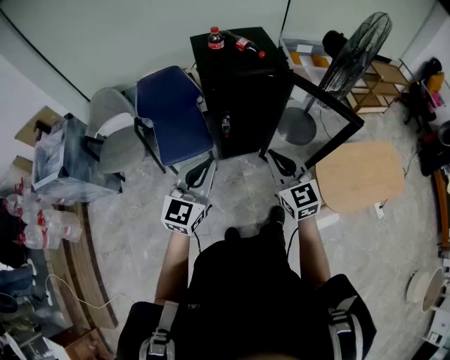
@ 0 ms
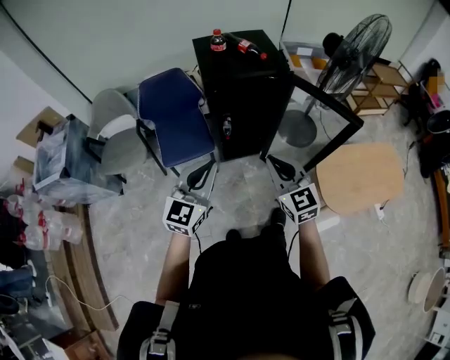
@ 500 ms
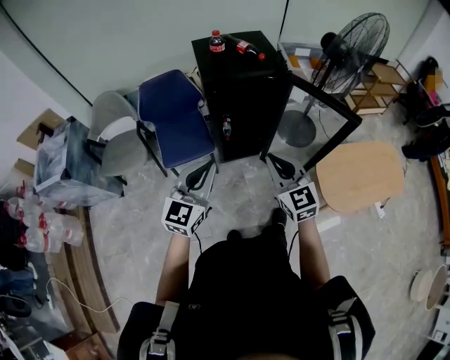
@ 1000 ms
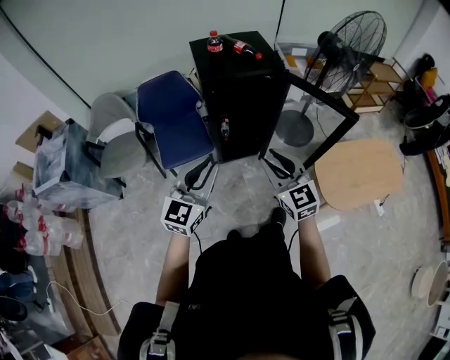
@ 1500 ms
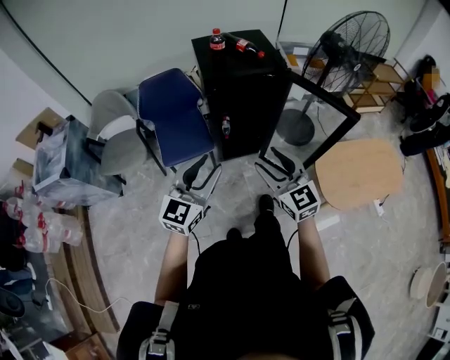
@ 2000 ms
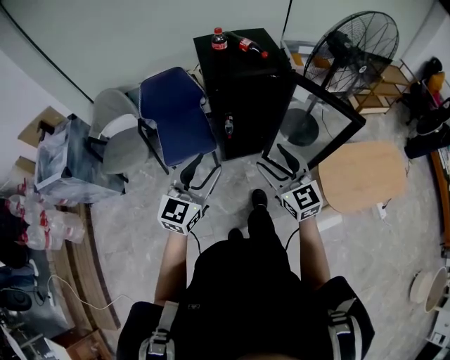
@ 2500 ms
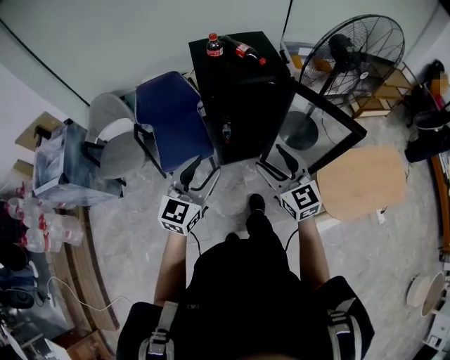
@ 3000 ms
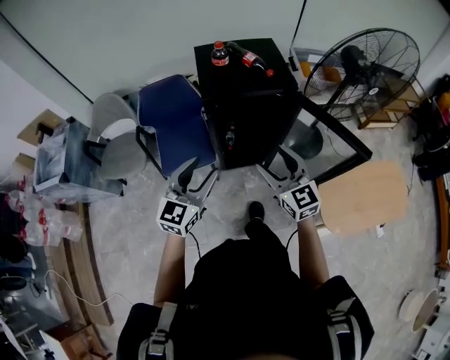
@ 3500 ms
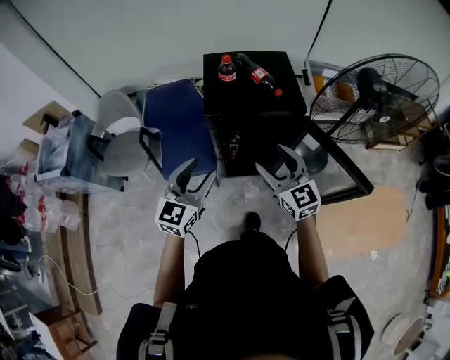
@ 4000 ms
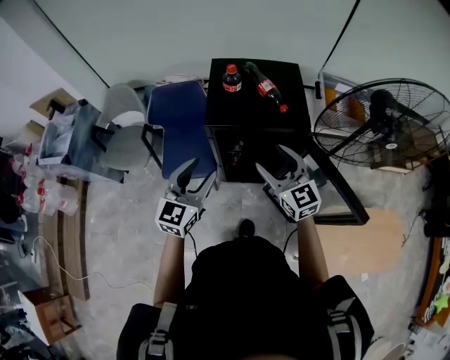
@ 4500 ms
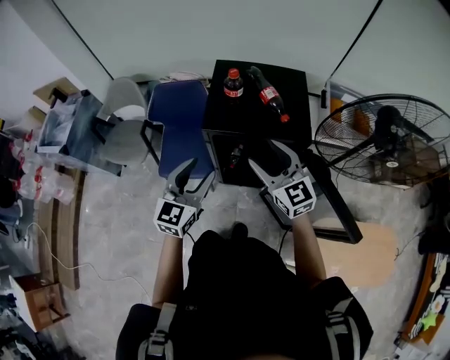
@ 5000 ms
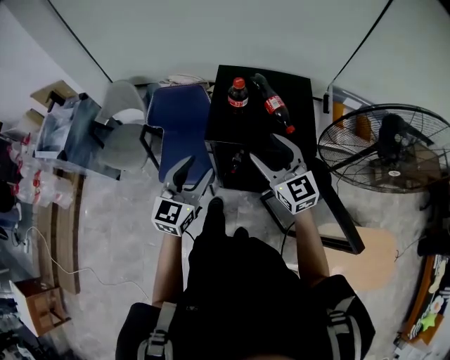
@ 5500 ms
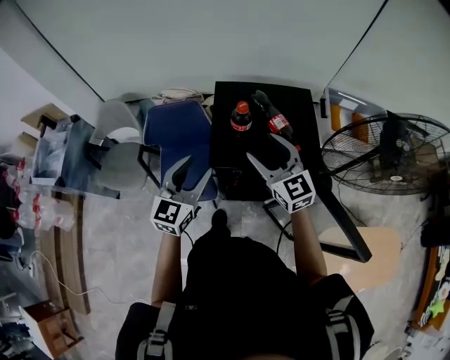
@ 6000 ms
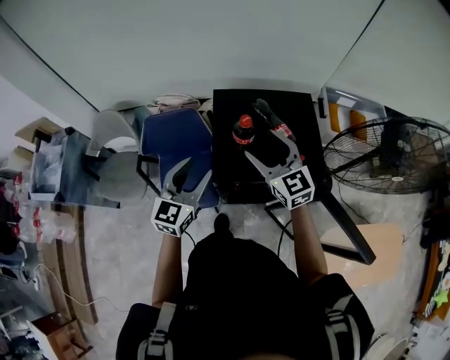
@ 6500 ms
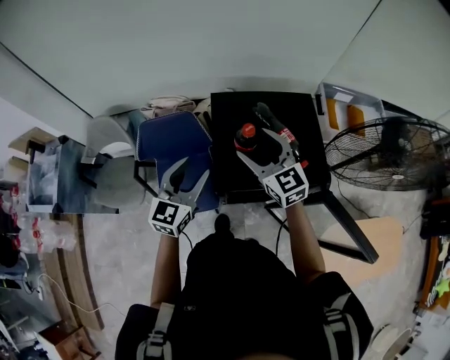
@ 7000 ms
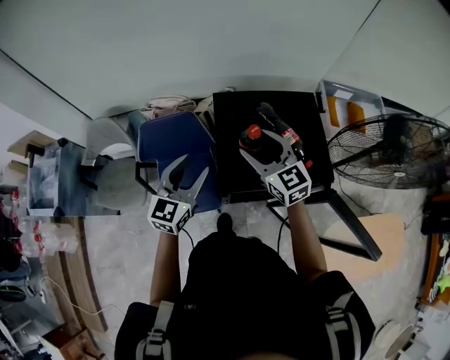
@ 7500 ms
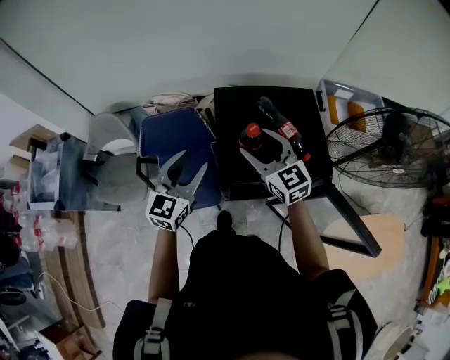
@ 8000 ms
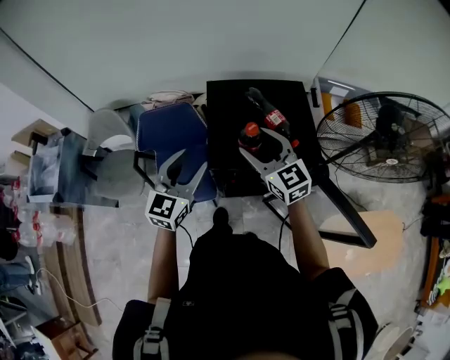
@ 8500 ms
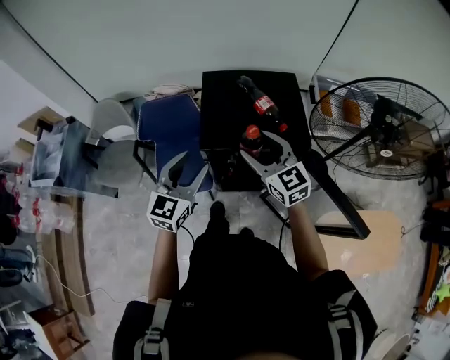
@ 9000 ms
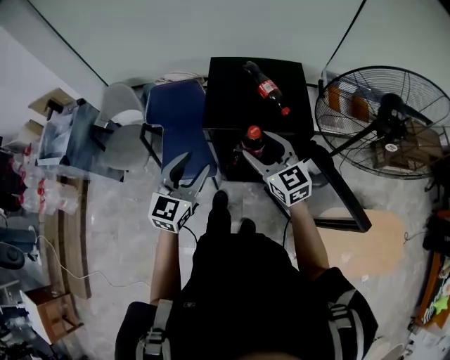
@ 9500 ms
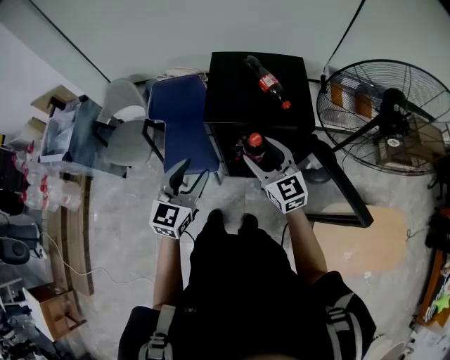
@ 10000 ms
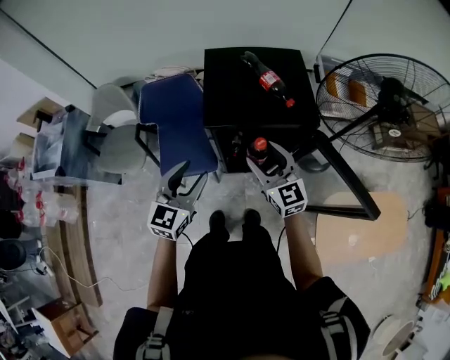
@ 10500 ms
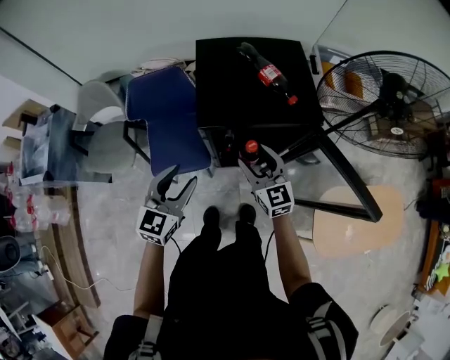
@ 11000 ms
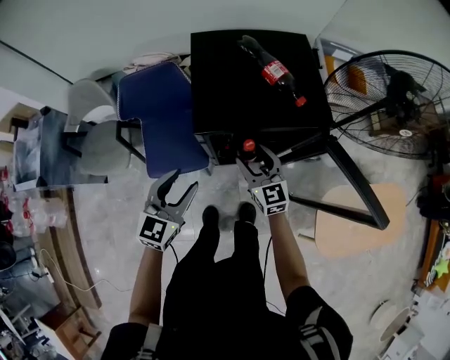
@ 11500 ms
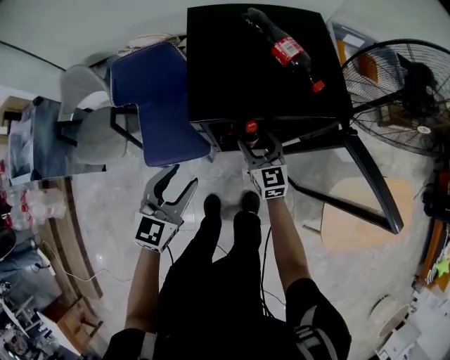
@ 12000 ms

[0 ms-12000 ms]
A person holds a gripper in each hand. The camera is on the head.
0 ms to 2000 ms: The right gripper changes place by about 5 cm, and opens up. The left gripper opens its fingers.
2000 ms to 4000 ms: The grippers both shift forward by about 20 cm.
4000 ms to 6000 ms: Both grippers move forward, some 20 cm.
6000 ms to 8000 ms: Both grippers travel together forward, approximately 5 cm.
8000 ms to 10000 ms: Both grippers move backward, roughly 20 cm.
10000 ms to 12000 ms: The right gripper goes approximately 25 cm downward and forward, and rotates about 20 degrees. The left gripper moves downward and forward, some 15 cm.

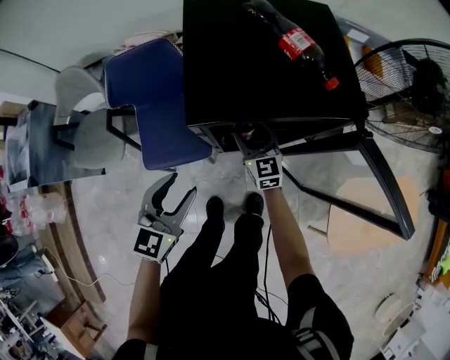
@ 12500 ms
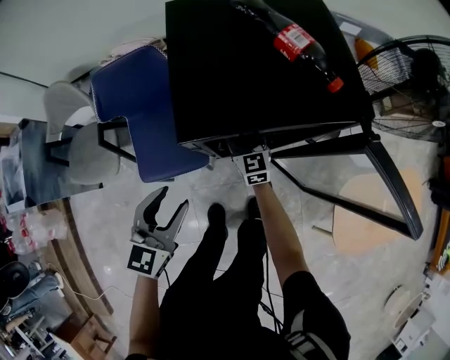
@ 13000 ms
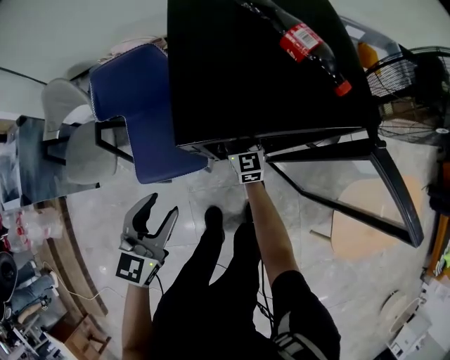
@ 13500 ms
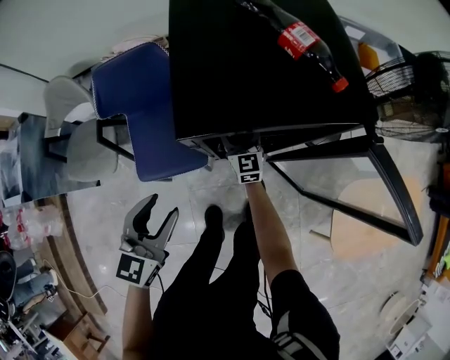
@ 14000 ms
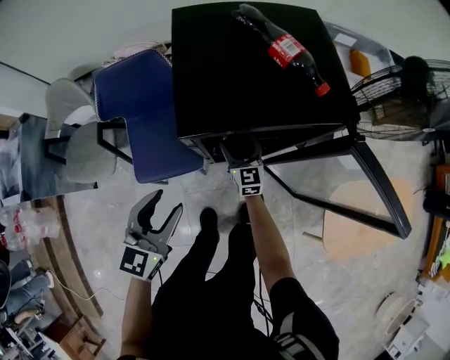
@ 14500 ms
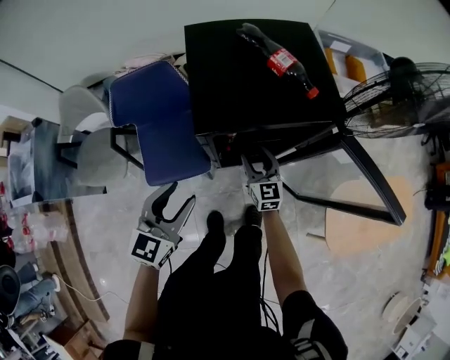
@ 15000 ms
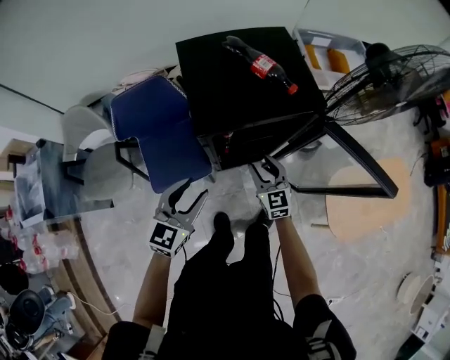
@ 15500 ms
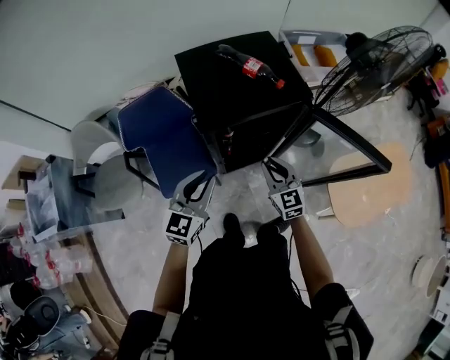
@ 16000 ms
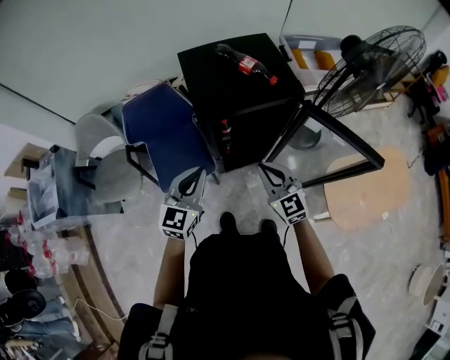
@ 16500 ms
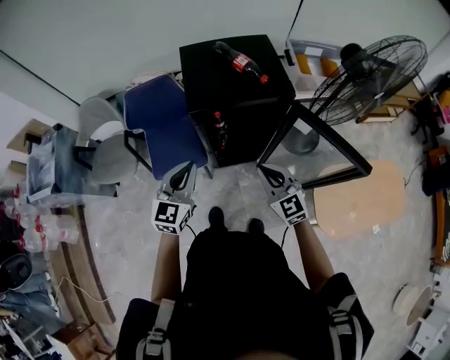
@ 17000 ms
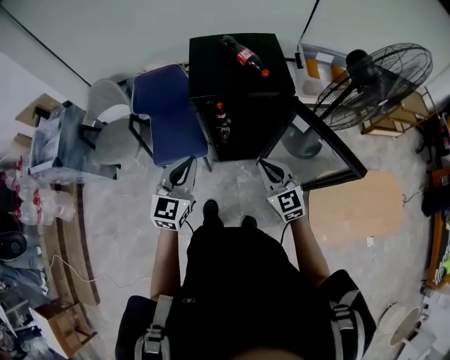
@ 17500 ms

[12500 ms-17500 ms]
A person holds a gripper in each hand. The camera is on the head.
15000 ms to 17500 ms: The left gripper moves upward, backward and to the right, about 15 cm, and closes up. Meanwhile the right gripper shifts approximately 30 cm upward, backward and to the right, rotates approximately 20 degrees, and closes its fingers.

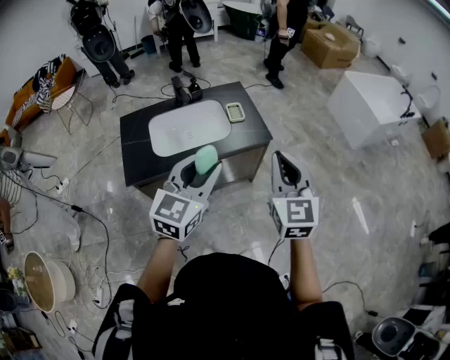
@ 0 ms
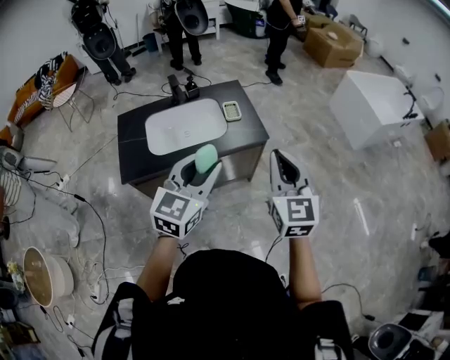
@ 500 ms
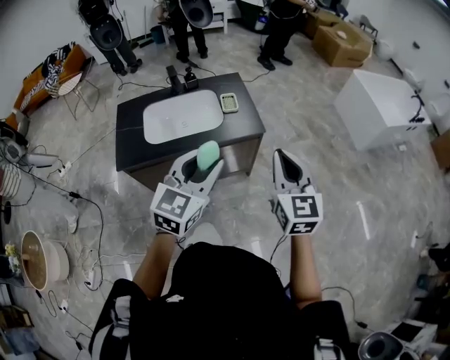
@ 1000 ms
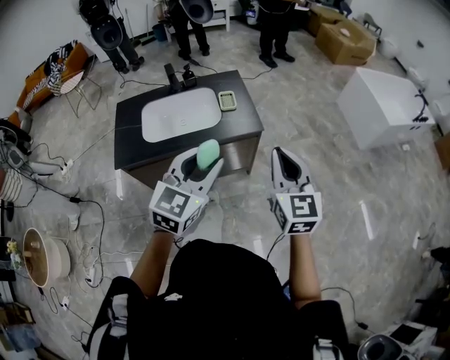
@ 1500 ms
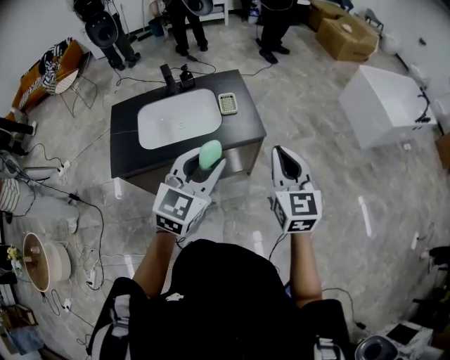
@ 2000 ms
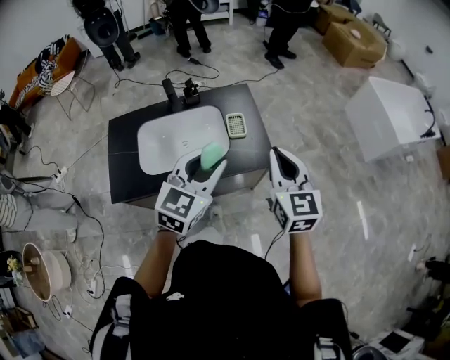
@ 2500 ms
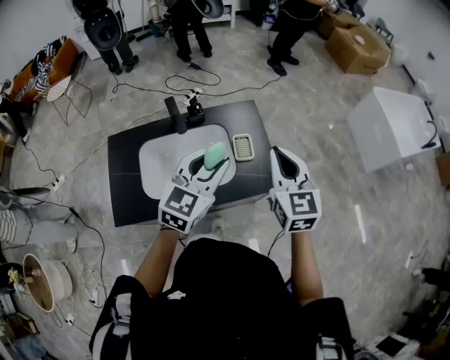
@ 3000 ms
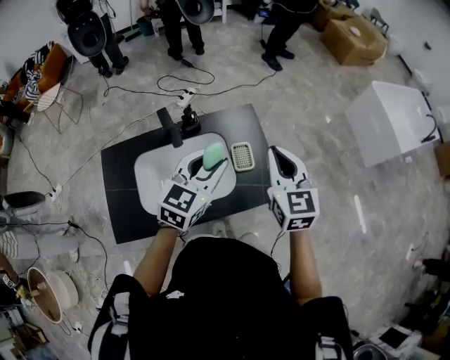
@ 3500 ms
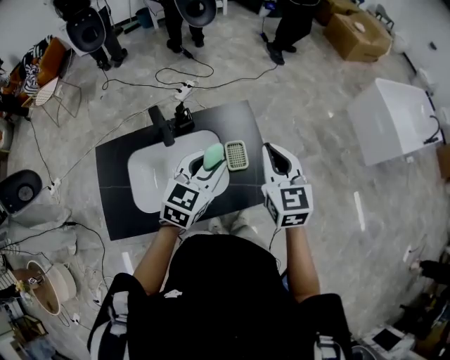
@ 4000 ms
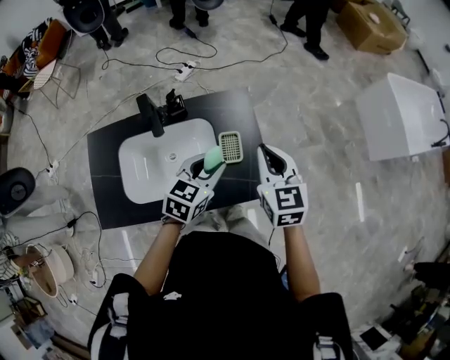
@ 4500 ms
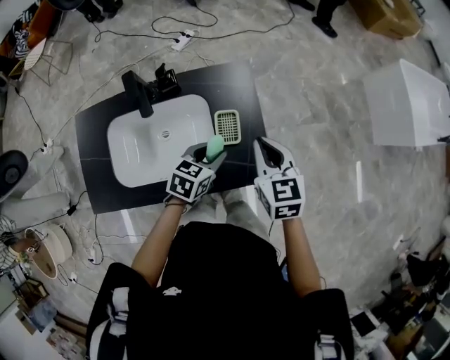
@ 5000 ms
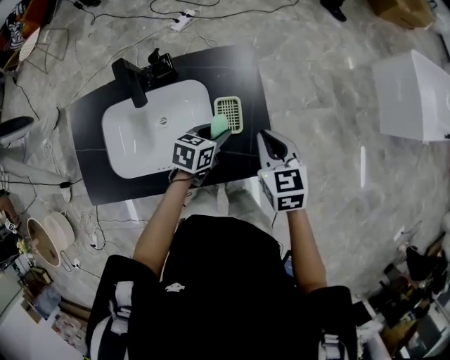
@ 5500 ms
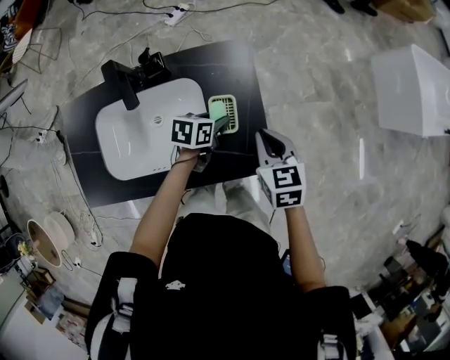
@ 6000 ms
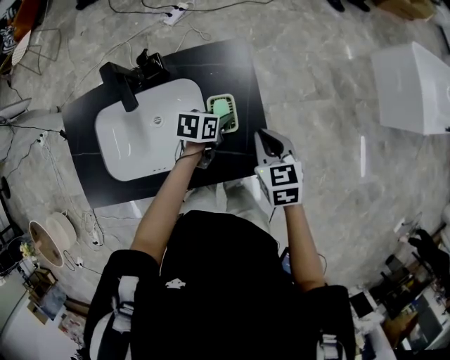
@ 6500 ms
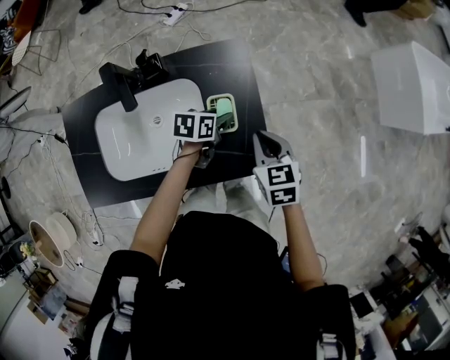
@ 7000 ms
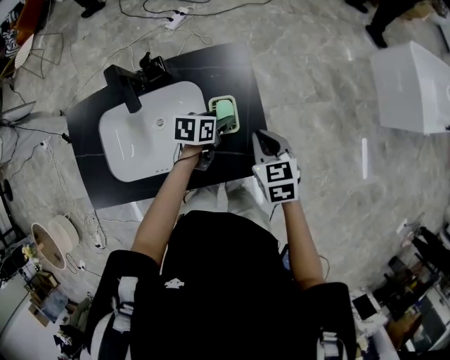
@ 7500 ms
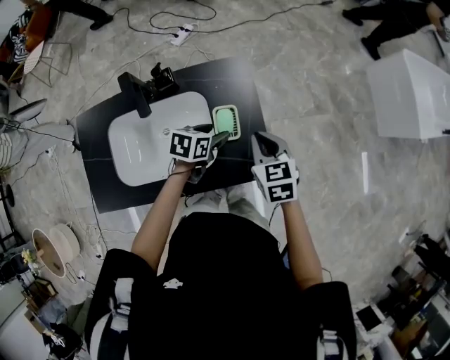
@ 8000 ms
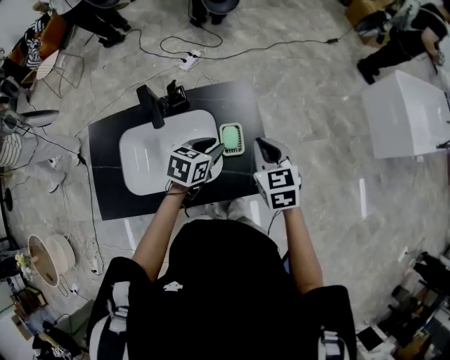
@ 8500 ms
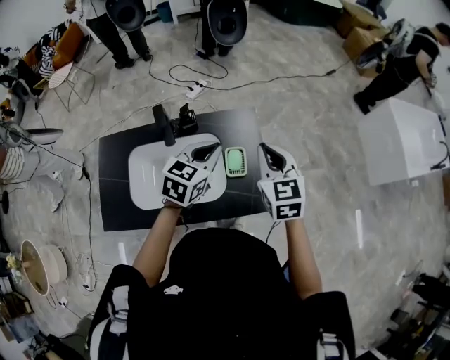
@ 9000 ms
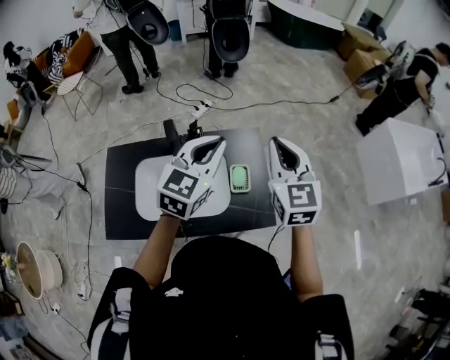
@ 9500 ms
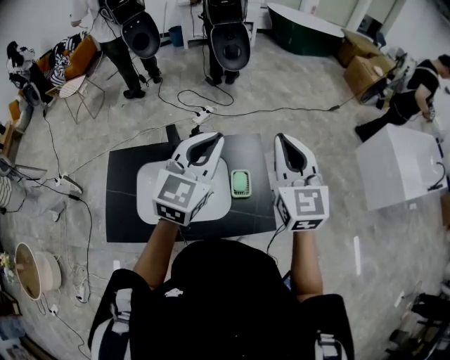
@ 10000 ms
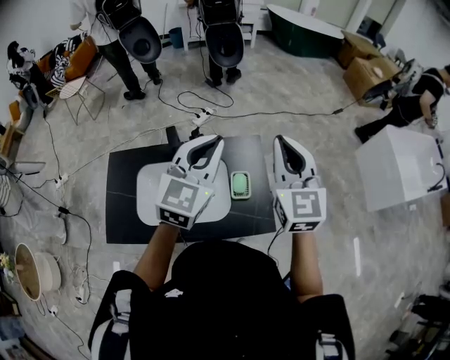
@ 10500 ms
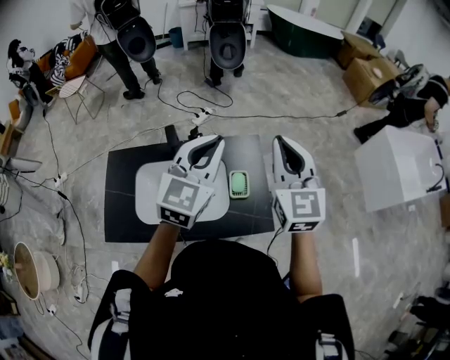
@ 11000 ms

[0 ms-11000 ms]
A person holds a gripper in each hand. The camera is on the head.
0 ms to 2000 ms: The right gripper shifts some 15 cm forward, to the right and downward. The left gripper travels to the right and forward by roughly 10 cm.
2000 ms to 3500 ms: The two grippers go roughly 35 cm forward and to the left.
3500 ms to 5500 ms: Both grippers move downward, some 25 cm. The right gripper changes its angle by about 30 degrees, while the left gripper rotates roughly 40 degrees.
5500 ms to 7500 ms: The left gripper changes place by approximately 5 cm, and opens.
7500 ms to 9000 ms: The two grippers go about 25 cm upward. The left gripper swivels approximately 40 degrees, and closes its fingers, while the right gripper rotates some 30 degrees.
9000 ms to 11000 ms: Both grippers move upward, about 15 cm. The right gripper swivels roughly 20 degrees. Meanwhile the left gripper swivels approximately 30 degrees.
